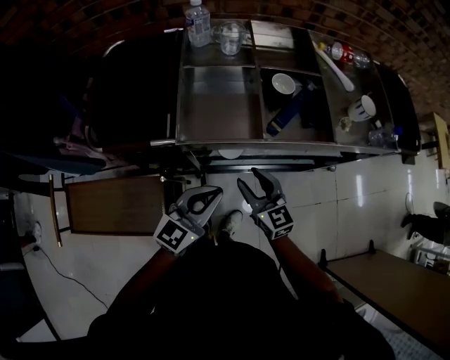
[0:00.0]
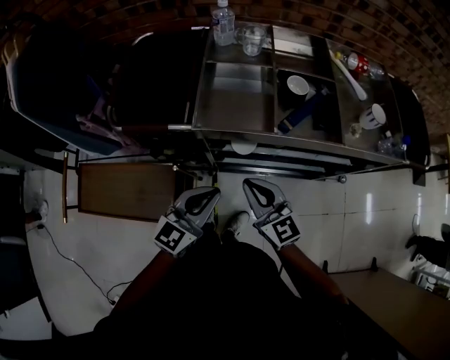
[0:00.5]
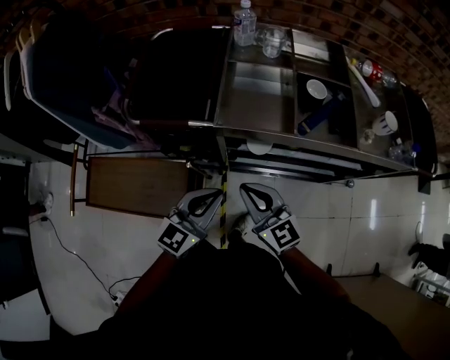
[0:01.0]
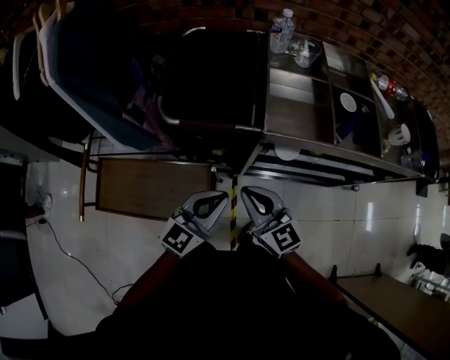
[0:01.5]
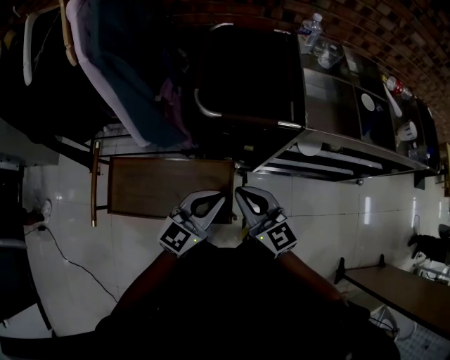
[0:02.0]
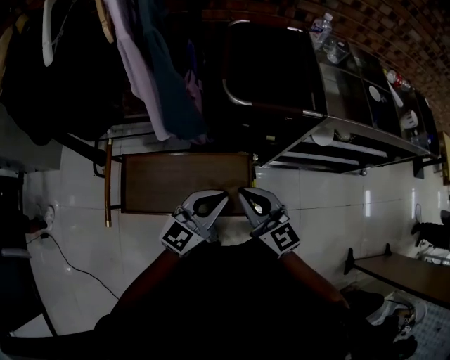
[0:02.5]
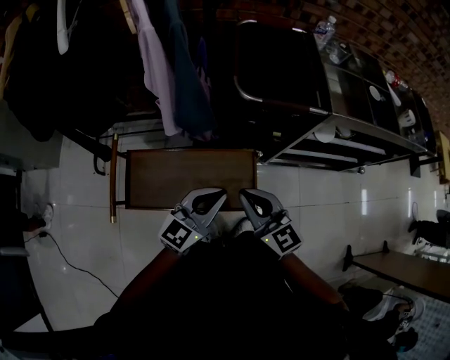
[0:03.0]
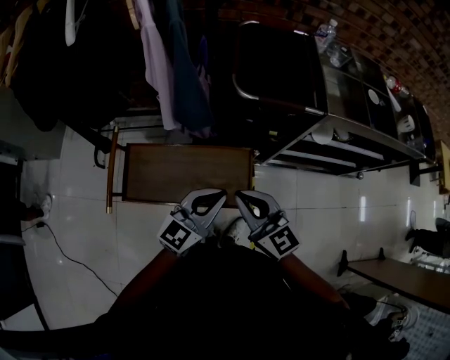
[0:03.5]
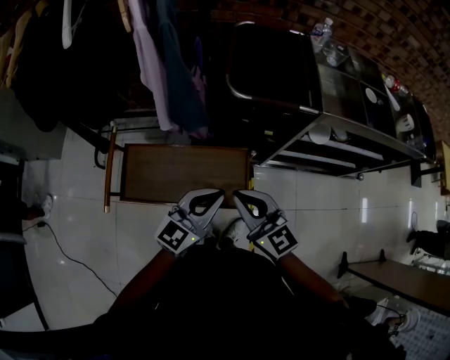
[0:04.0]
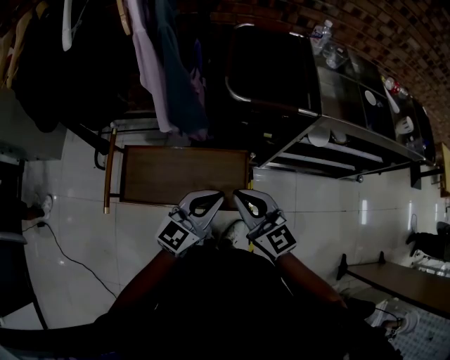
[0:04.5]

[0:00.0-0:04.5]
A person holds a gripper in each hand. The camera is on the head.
0:00.0 to 0:02.0: The two grippers go about 35 cm to the left. The right gripper closes.
0:02.0 to 0:04.5: Both grippers move to the left and backward, roughly 10 cm.

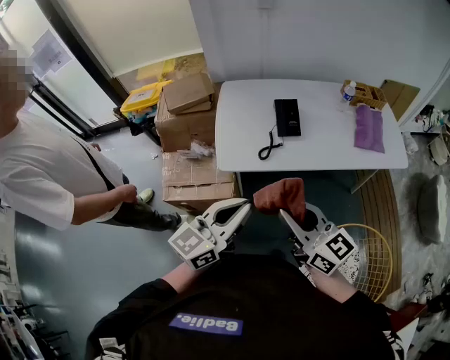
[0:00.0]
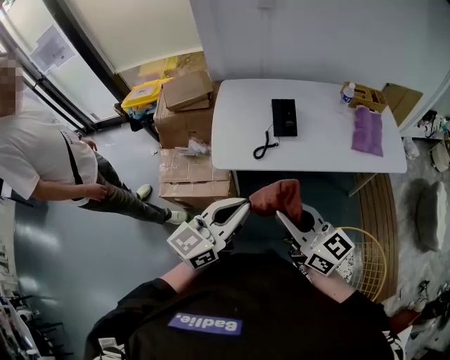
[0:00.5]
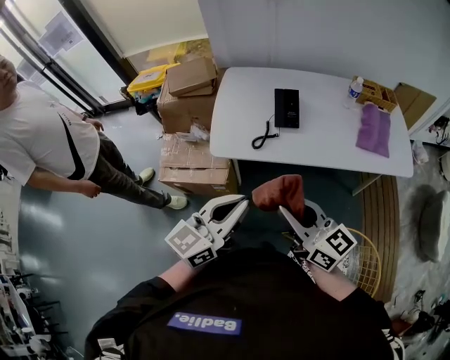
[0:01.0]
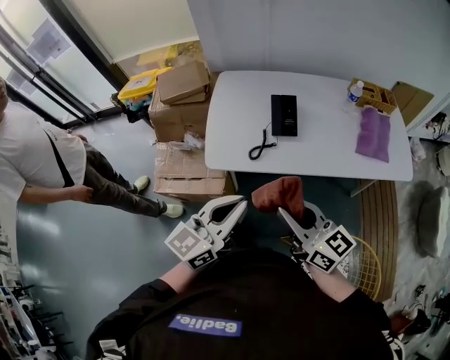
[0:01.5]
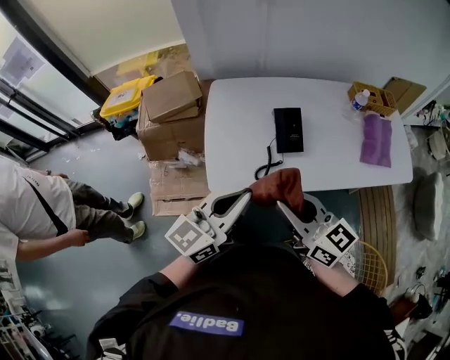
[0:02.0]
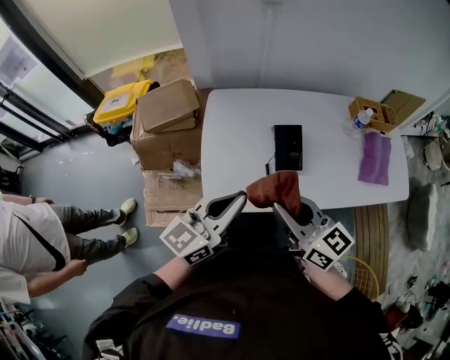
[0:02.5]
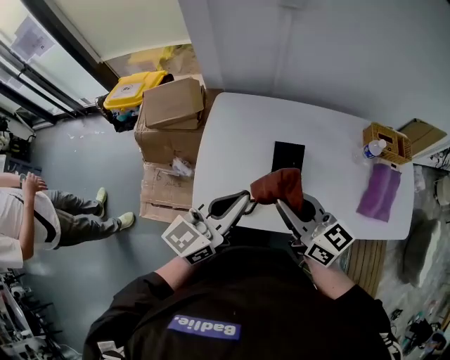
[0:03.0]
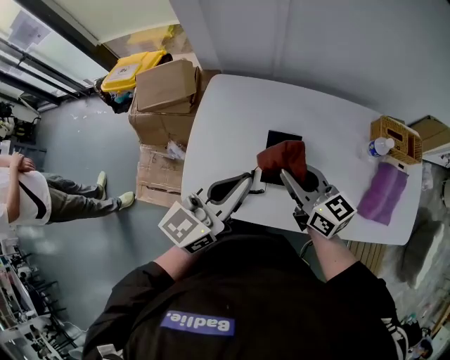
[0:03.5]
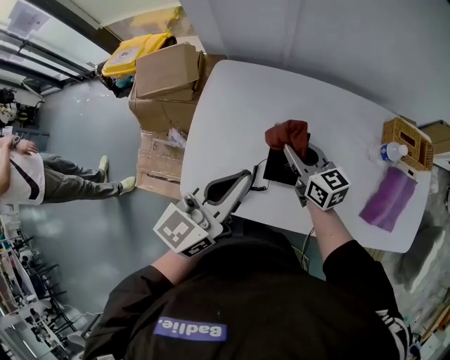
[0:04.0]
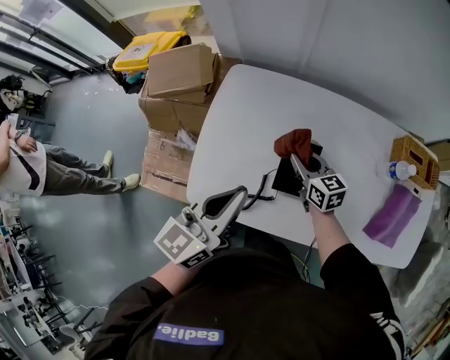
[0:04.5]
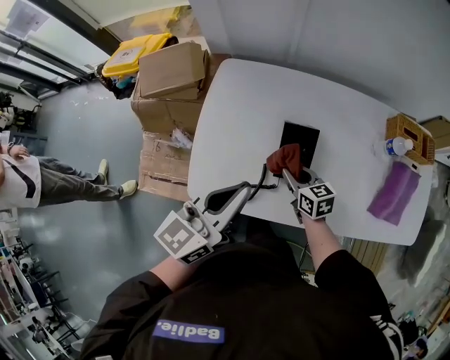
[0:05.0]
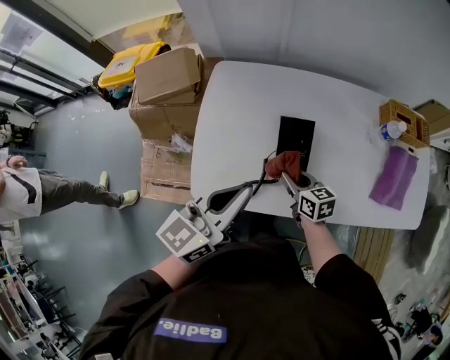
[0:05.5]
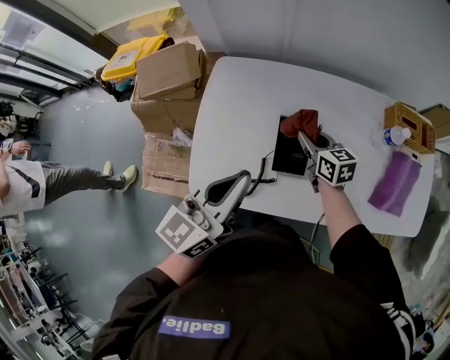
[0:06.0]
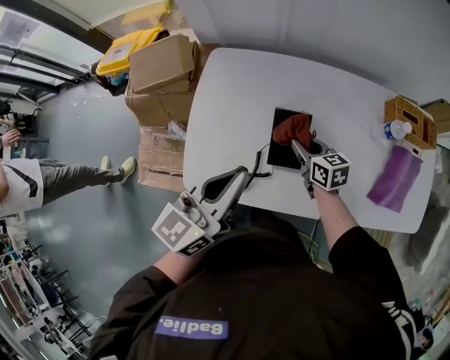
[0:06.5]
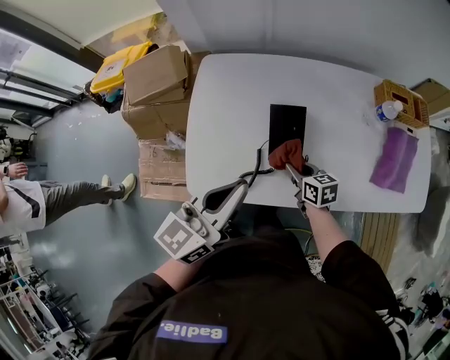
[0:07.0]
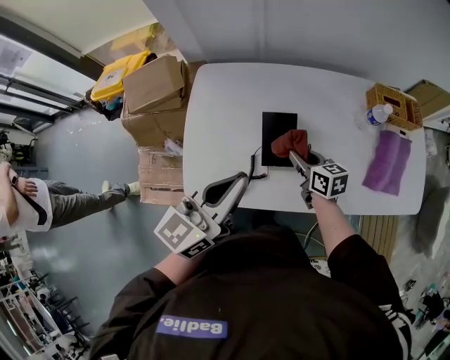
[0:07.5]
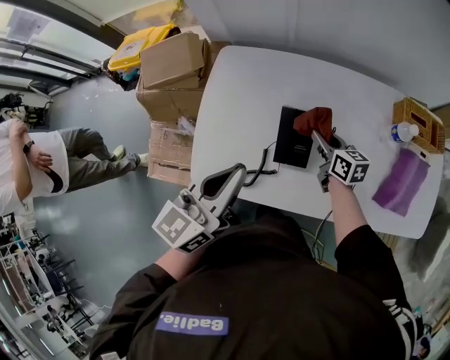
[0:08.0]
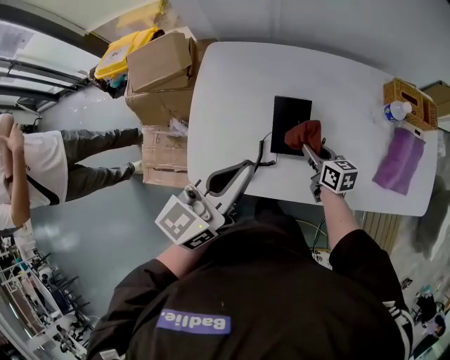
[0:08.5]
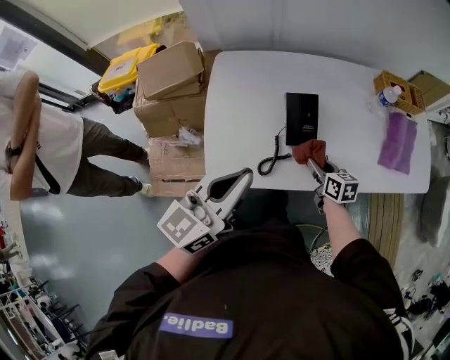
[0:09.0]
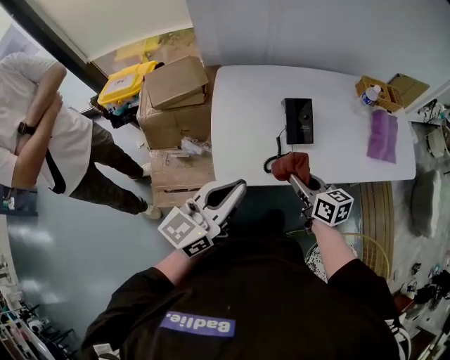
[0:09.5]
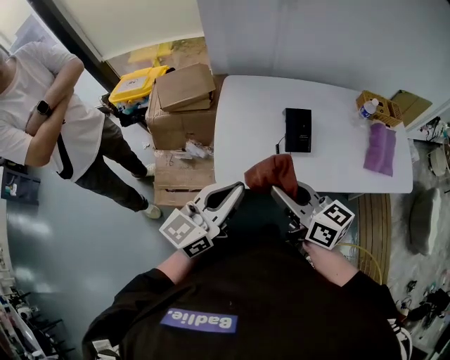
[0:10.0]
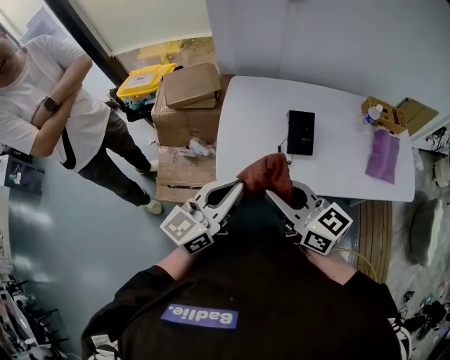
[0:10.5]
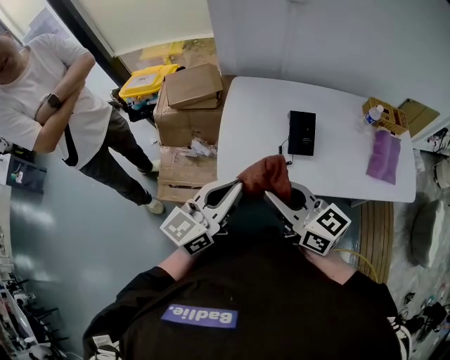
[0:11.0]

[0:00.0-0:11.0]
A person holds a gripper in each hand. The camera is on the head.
0:00.0 to 0:02.0: The two grippers go roughly 20 cm forward.
0:02.0 to 0:03.5: Both grippers travel together forward and to the right, about 25 cm.
0:03.5 to 0:05.5: The right gripper goes about 20 cm downward, and rotates approximately 30 degrees. Meanwhile the left gripper moves roughly 5 cm.
0:05.5 to 0:07.5: The right gripper goes forward and backward, some 15 cm each way, reversing 2 times.
0:07.5 to 0:09.0: The right gripper travels backward by about 10 cm. The left gripper heads to the left and backward, covering some 10 cm.
0:09.0 to 0:11.0: The left gripper travels backward and to the left by some 10 cm, while the right gripper is displaced upward, to the left and backward by roughly 40 cm, and tips its fingers upward by some 30 degrees.

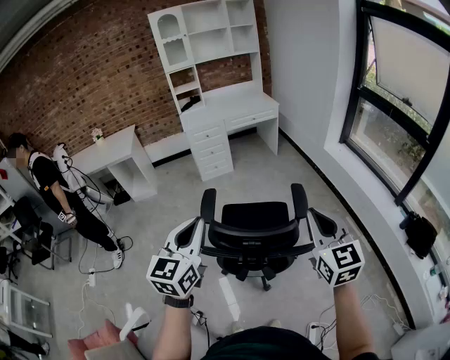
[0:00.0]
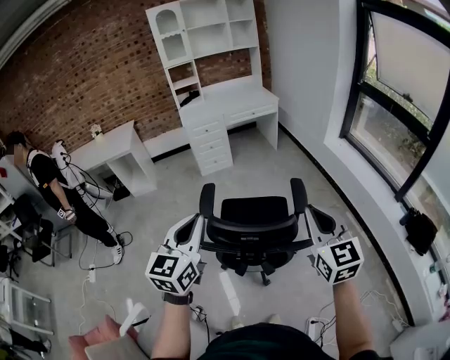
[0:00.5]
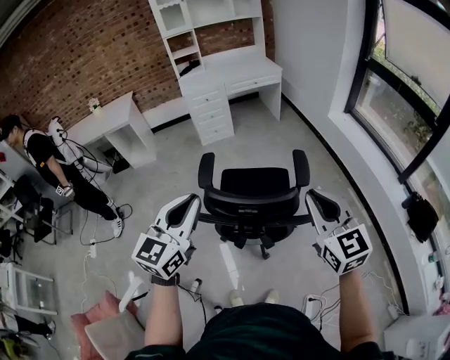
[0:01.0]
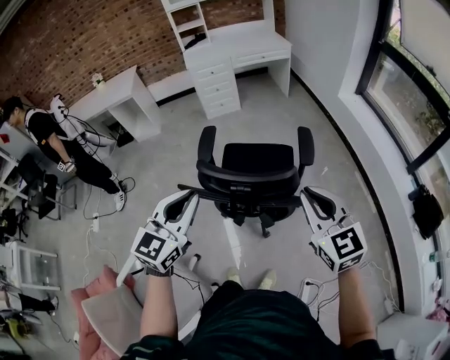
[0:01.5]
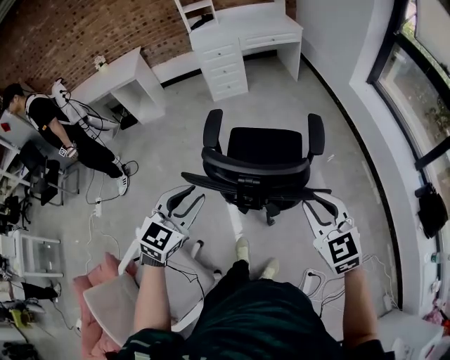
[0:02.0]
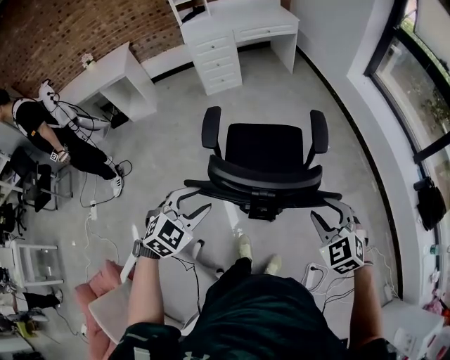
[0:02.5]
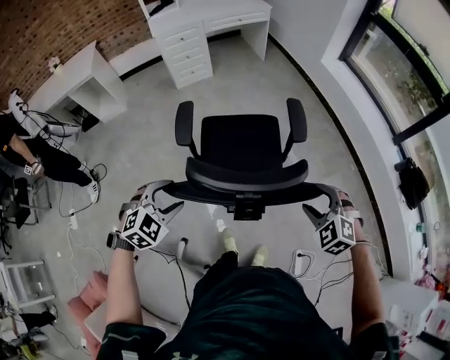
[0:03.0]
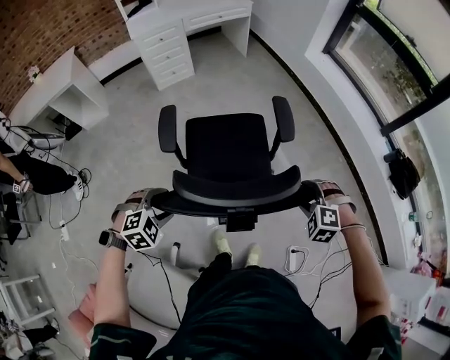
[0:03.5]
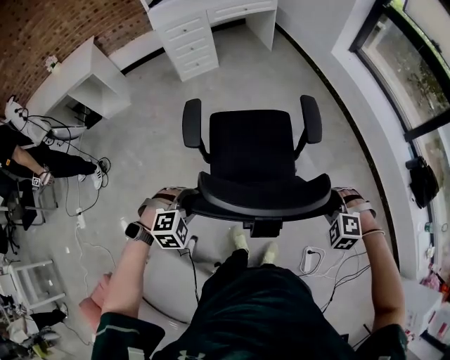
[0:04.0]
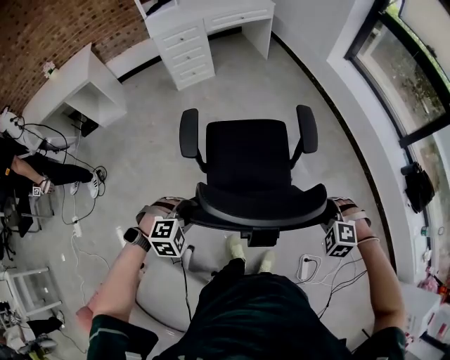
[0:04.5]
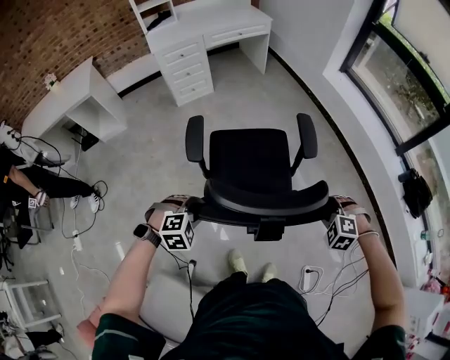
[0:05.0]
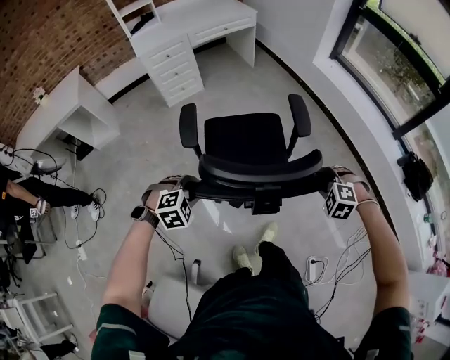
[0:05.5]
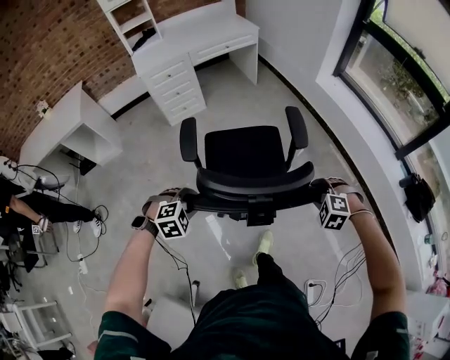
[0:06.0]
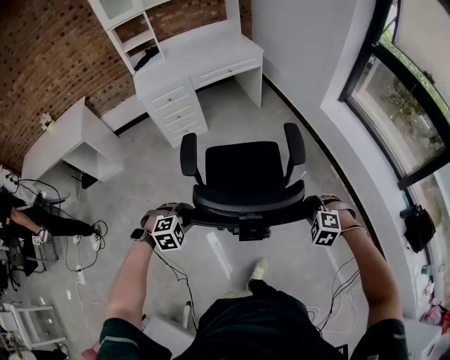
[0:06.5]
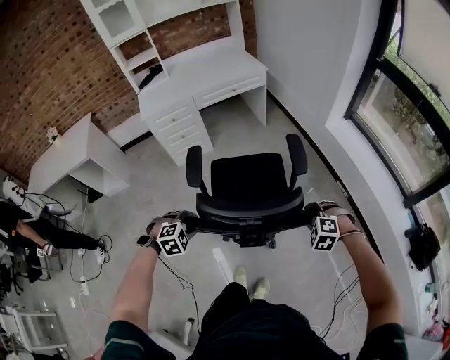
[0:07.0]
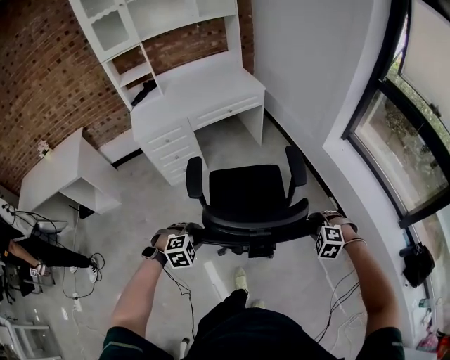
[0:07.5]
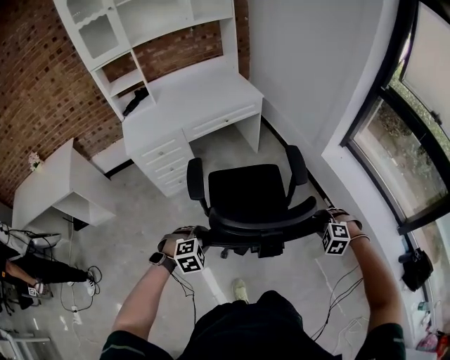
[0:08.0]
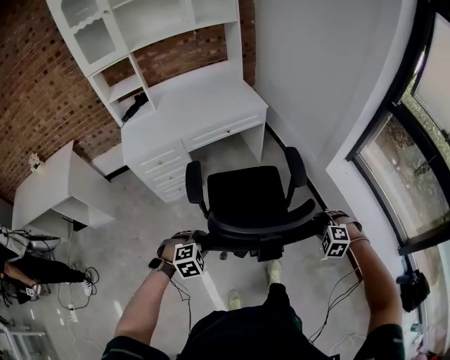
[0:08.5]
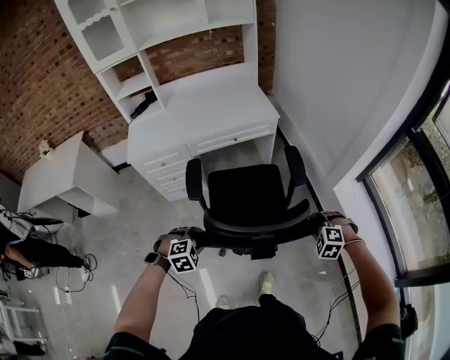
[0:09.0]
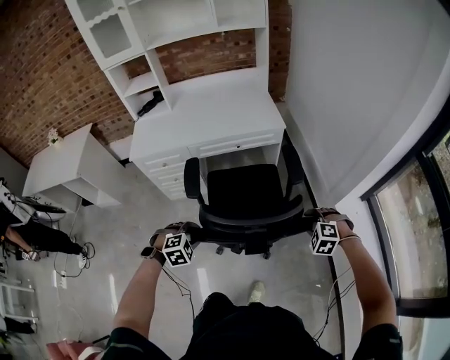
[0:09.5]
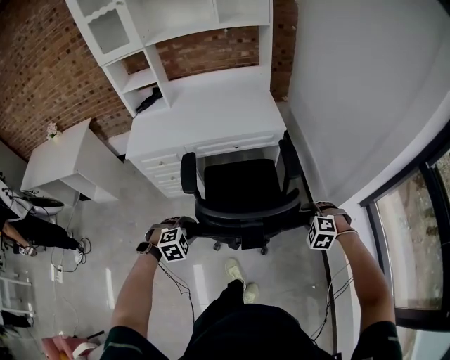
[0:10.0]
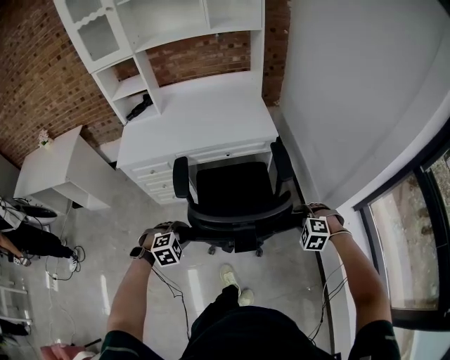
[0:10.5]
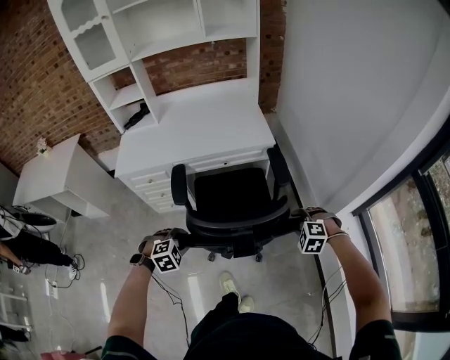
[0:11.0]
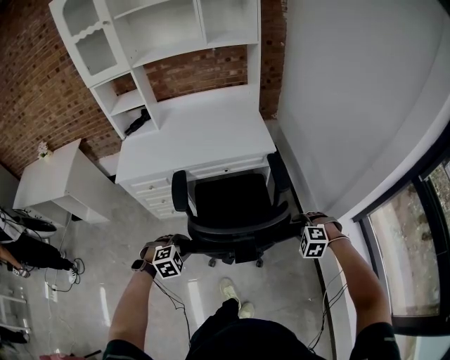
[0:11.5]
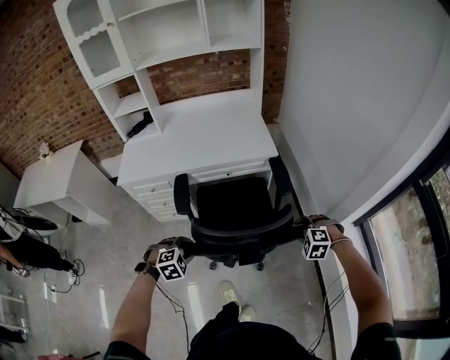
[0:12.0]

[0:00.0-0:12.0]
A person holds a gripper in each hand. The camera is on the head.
0:00.0 to 0:02.0: The two grippers go approximately 15 cm downward. The right gripper rotates approximately 30 degrees. The left gripper changes its angle by some 30 degrees, and opens its fingers.
0:02.0 to 0:04.0: The two grippers go roughly 20 cm downward. The left gripper angles its fingers downward, by approximately 40 degrees, and opens and closes again. Meanwhile the right gripper points its fingers roughly 40 degrees further downward, and opens its fingers.
0:04.0 to 0:06.0: Both grippers move forward, about 20 cm.
0:06.0 to 0:08.0: The grippers both shift forward by roughly 40 cm.
0:08.0 to 0:10.0: Both grippers travel together forward, some 30 cm.
0:10.0 to 0:12.0: The right gripper shifts about 5 cm forward.
